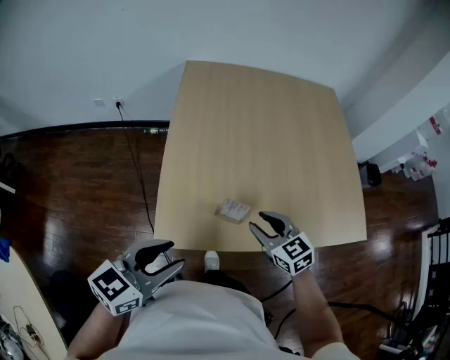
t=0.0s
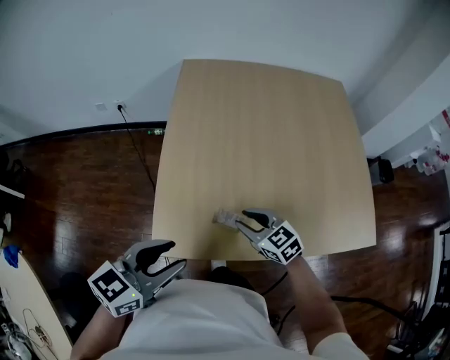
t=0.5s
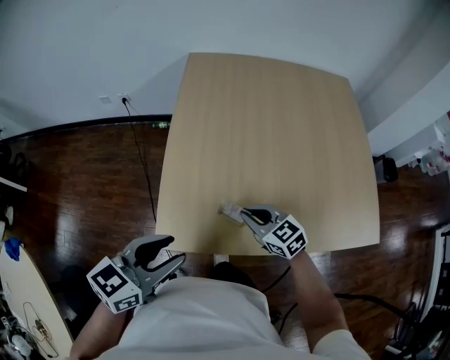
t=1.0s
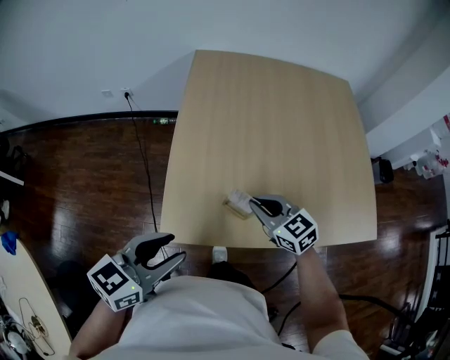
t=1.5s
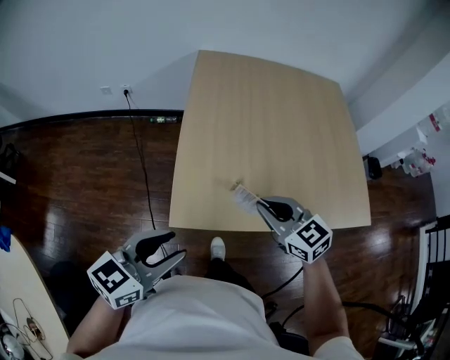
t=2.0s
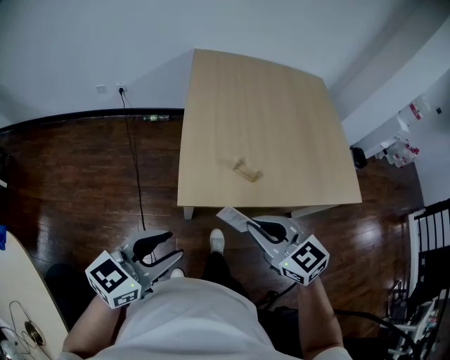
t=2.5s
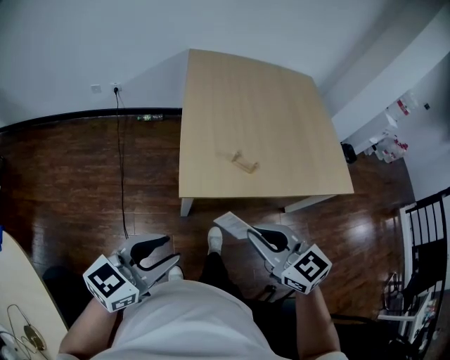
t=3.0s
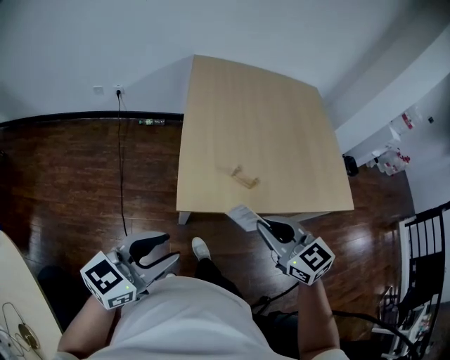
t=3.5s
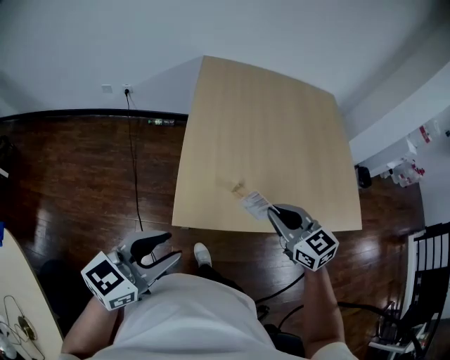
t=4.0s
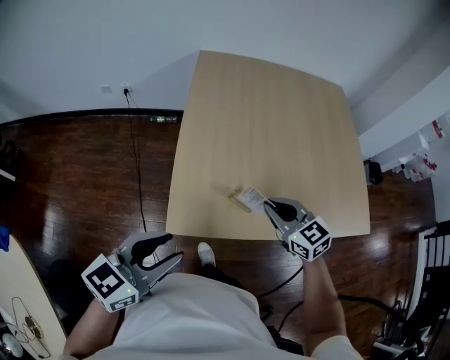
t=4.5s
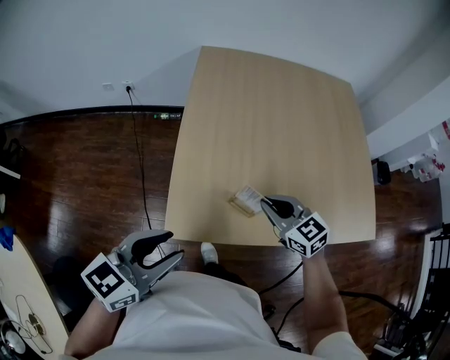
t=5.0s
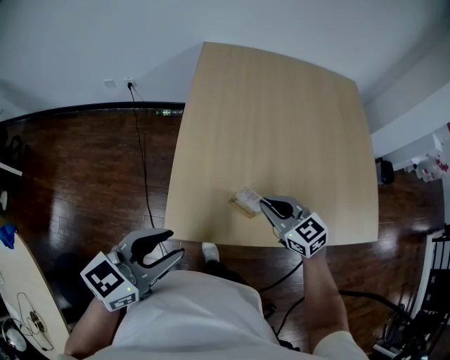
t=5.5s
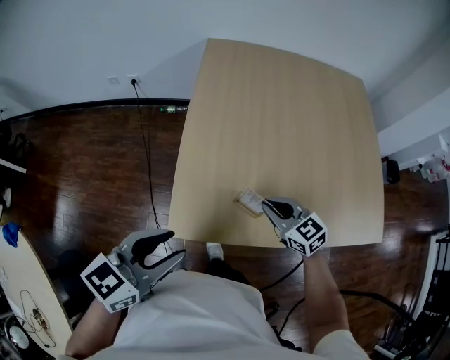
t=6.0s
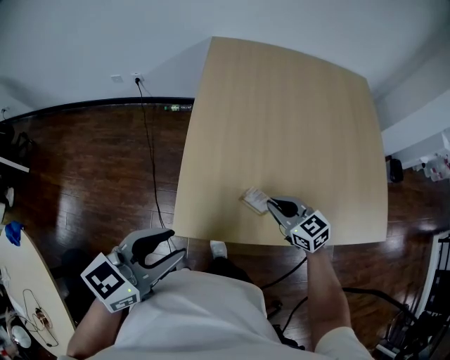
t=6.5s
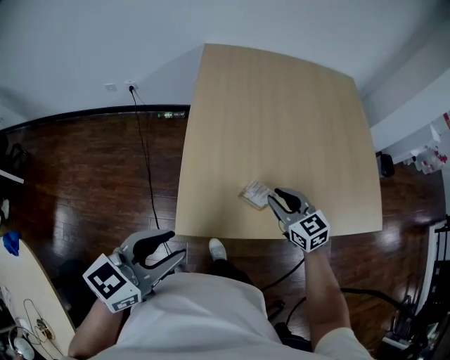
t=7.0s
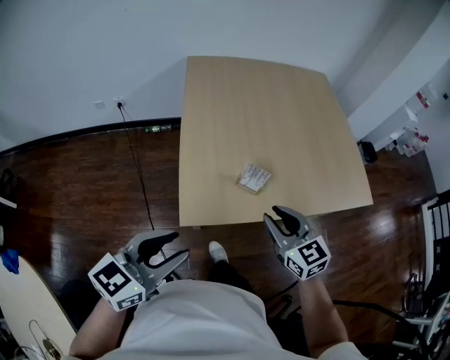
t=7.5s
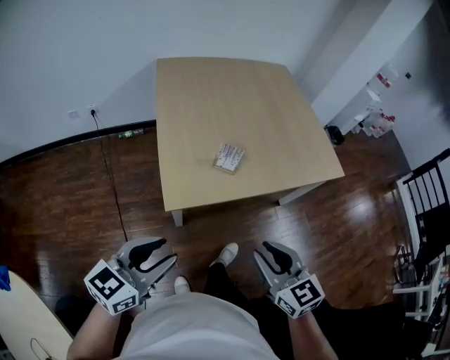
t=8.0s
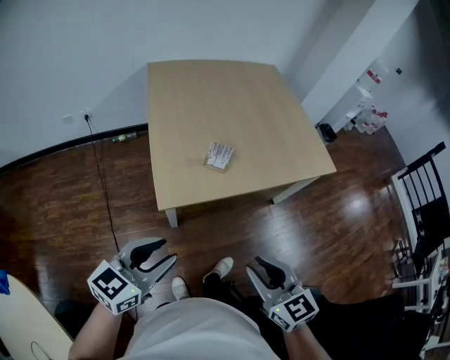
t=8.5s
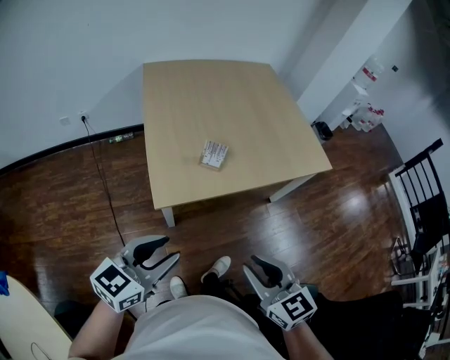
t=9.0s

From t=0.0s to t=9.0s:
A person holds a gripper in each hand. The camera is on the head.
From t=0.0s to t=2.0s: The left gripper moves approximately 5 cm. The right gripper heads upward and to the left, covering roughly 10 cm, and closes up.
From t=2.0s to t=4.5s: The right gripper reaches about 20 cm backward, then returns; the left gripper moves approximately 15 cm backward and comes back.
From t=4.5s to t=7.0s: The right gripper goes approximately 5 cm downward, and opens its fingers.
From t=7.0s to t=9.0s: The right gripper shifts approximately 40 cm backward, and changes its angle by about 20 degrees. Meanwhile the left gripper shifts about 15 cm backward.

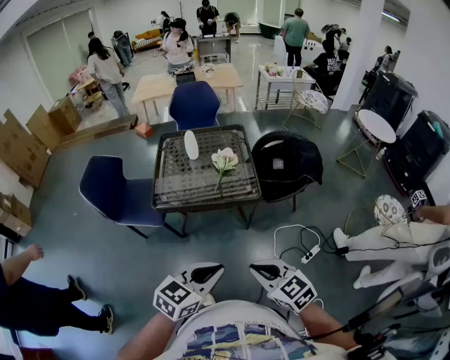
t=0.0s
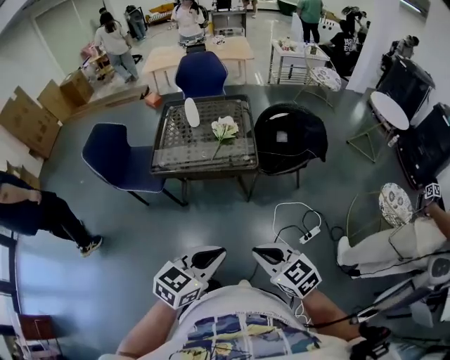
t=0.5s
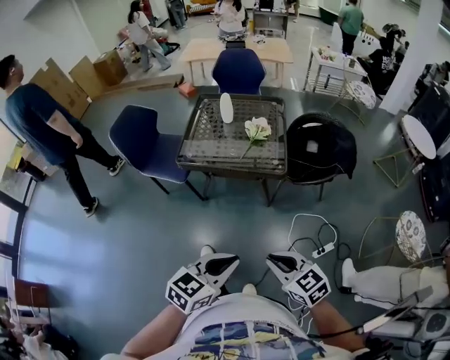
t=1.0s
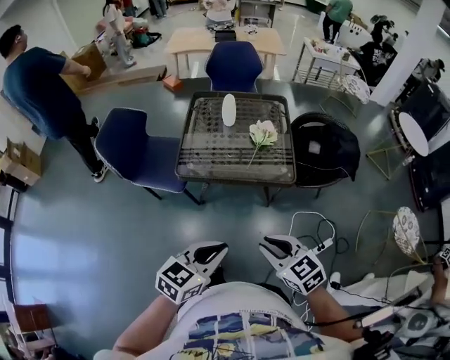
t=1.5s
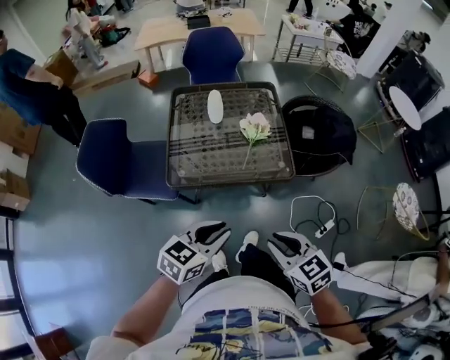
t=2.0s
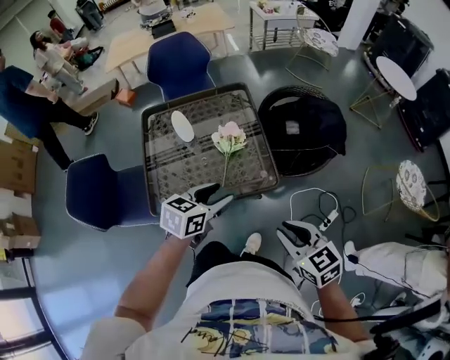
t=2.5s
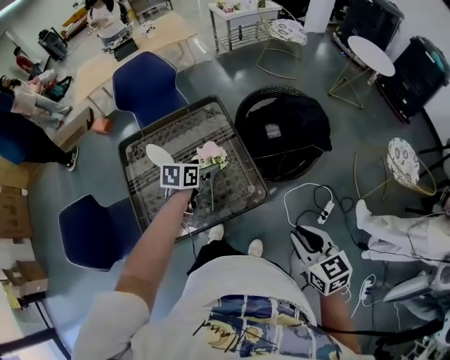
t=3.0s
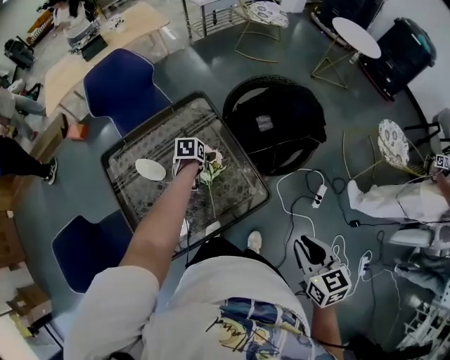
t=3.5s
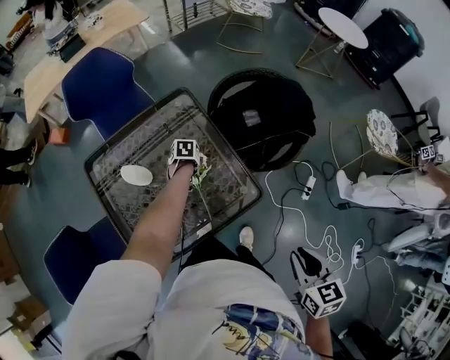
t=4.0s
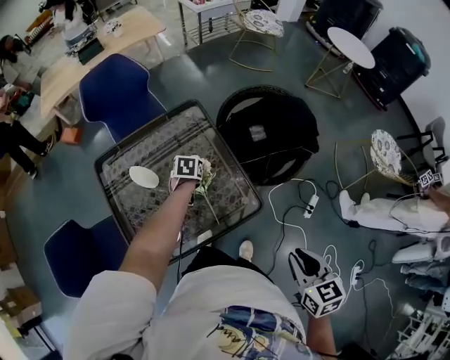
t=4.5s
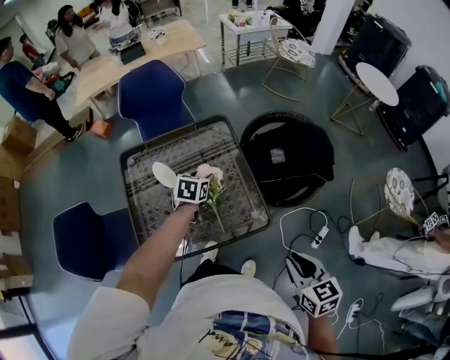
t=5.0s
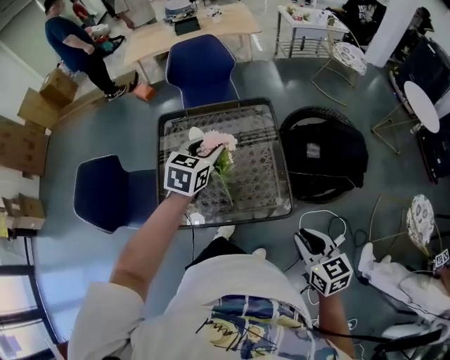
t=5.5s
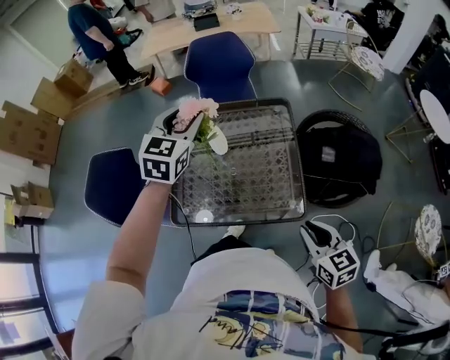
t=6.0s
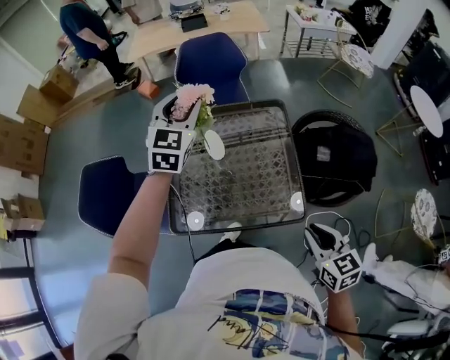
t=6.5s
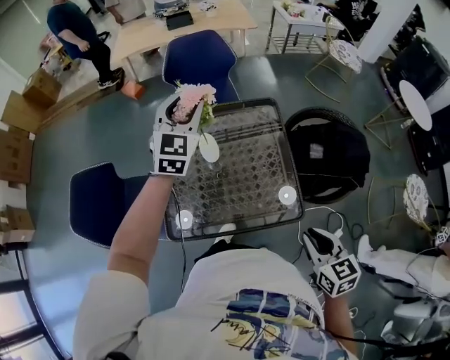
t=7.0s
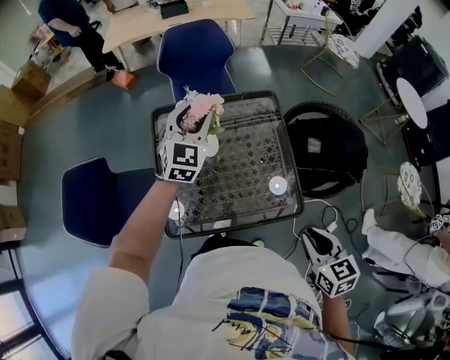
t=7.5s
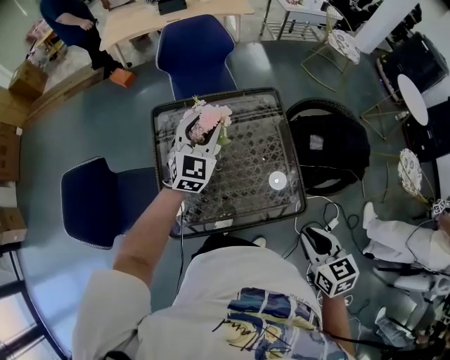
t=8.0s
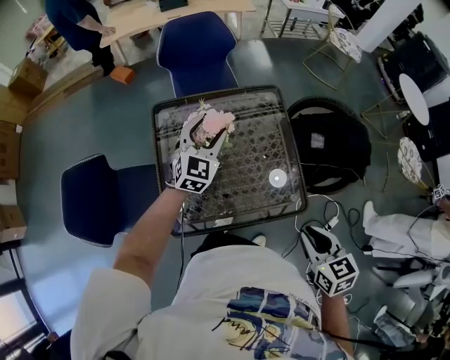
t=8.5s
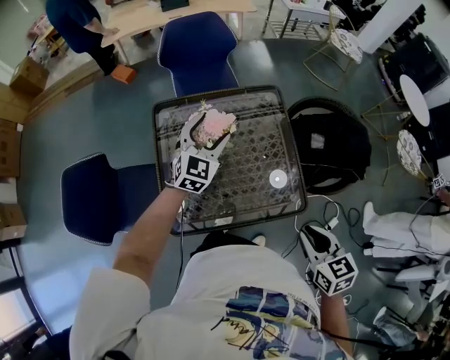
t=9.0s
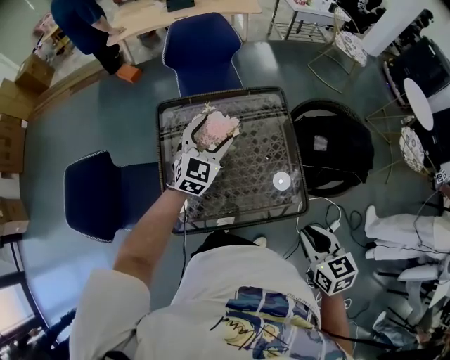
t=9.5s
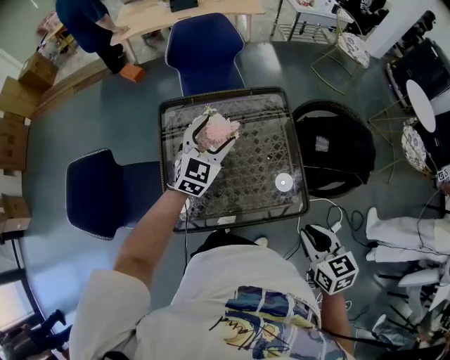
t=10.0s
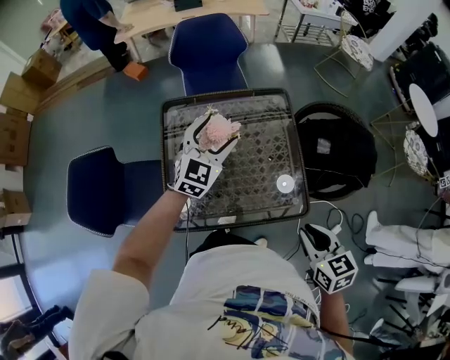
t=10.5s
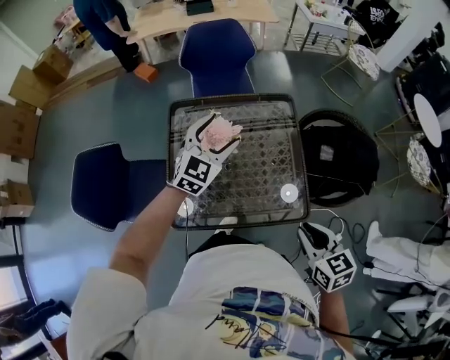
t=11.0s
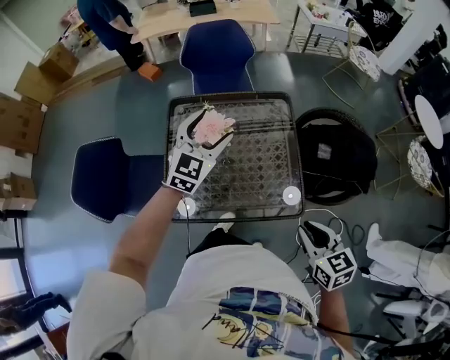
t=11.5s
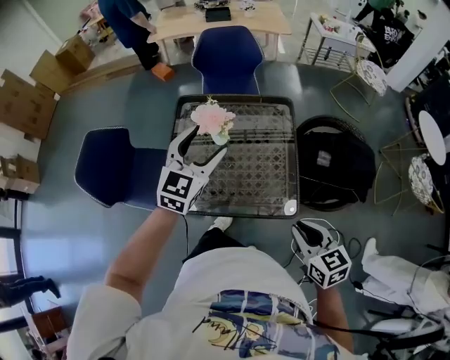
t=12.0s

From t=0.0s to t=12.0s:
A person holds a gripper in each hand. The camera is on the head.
From t=0.0s to t=2.0s: The grippers both shift forward and to the left by approximately 20 cm.
From t=2.0s to t=4.0s: The left gripper ends up roughly 70 cm from where it was, angles its fingers downward, by some 50 degrees, and opens up; the right gripper shifts by roughly 20 cm, and changes its angle by some 60 degrees.
From t=4.0s to t=6.0s: The right gripper ends up some 10 cm from where it was, and turns by roughly 40 degrees. Meanwhile the left gripper heads upward, covering about 50 cm, tips its fingers upward by some 50 degrees, and closes its fingers.
From t=6.0s to t=8.0s: The left gripper goes roughly 15 cm downward and forward. Meanwhile the right gripper heads to the left, covering approximately 5 cm.
From t=8.0s to t=10.0s: The left gripper opens.
From t=10.0s to t=12.0s: The left gripper travels backward and upward by approximately 15 cm; the right gripper moves to the right, about 5 cm.

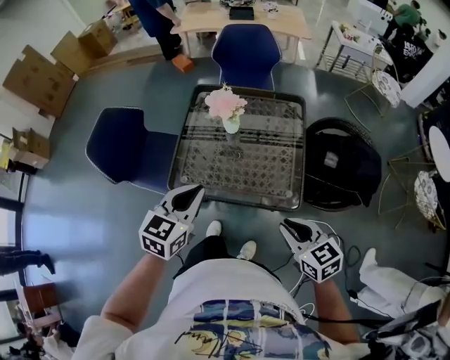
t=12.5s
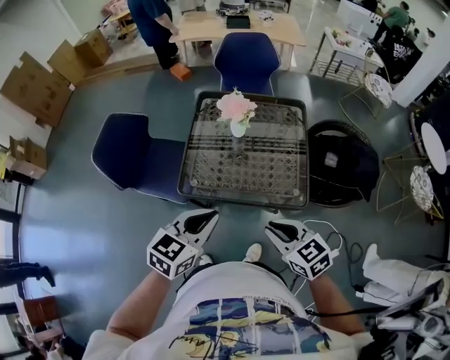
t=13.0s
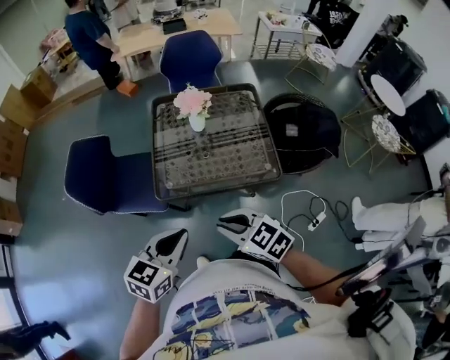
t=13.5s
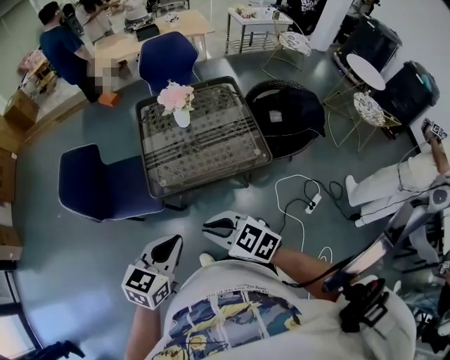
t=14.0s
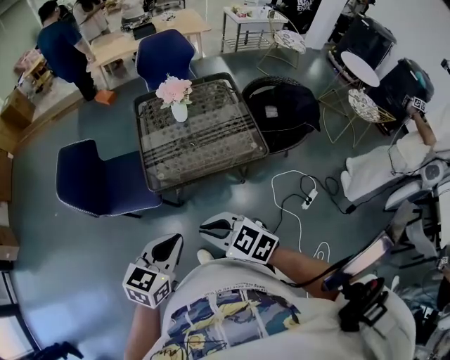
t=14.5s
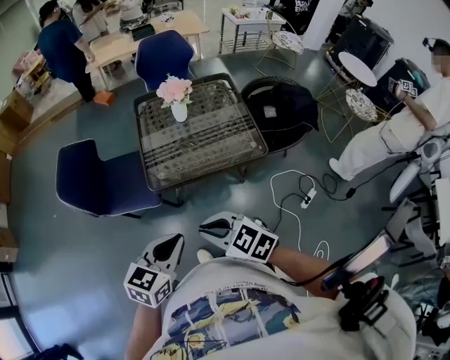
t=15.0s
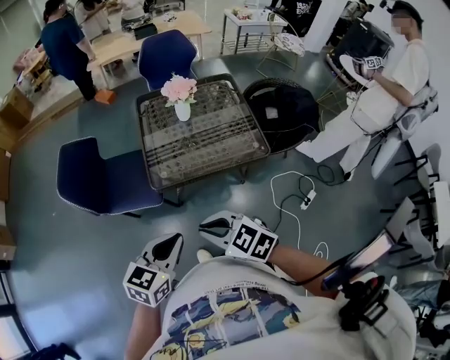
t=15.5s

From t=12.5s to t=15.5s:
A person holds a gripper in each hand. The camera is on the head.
From t=12.5s to t=14.0s: The right gripper heads to the left, covering about 30 cm. Meanwhile the left gripper shifts roughly 25 cm backward and to the left, and swivels some 20 degrees.
From t=14.0s to t=15.5s: The right gripper changes place by approximately 5 cm. The left gripper shifts by about 5 cm.

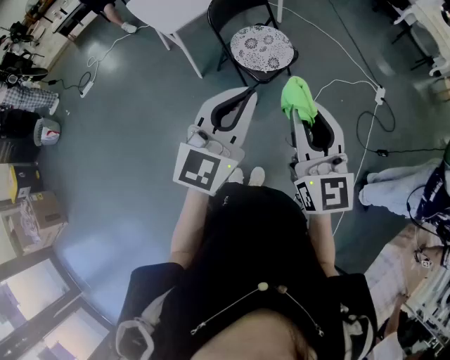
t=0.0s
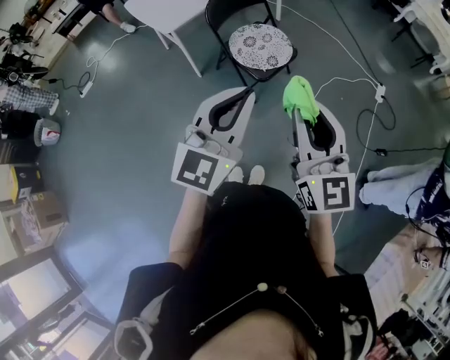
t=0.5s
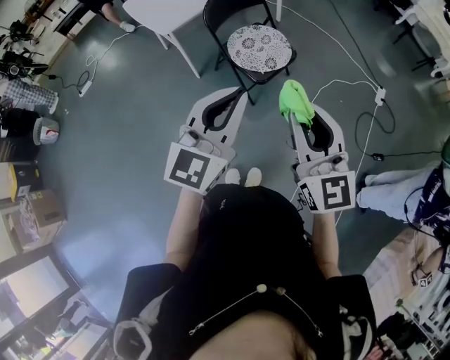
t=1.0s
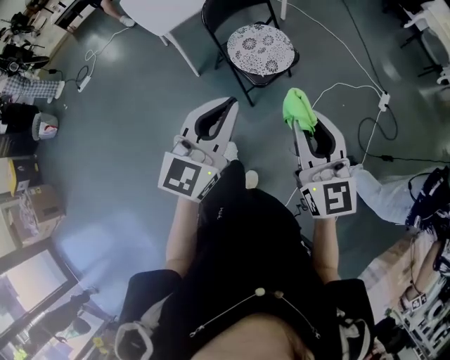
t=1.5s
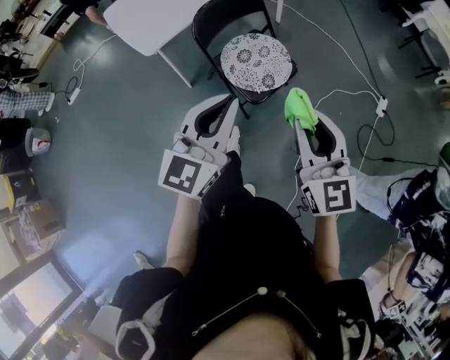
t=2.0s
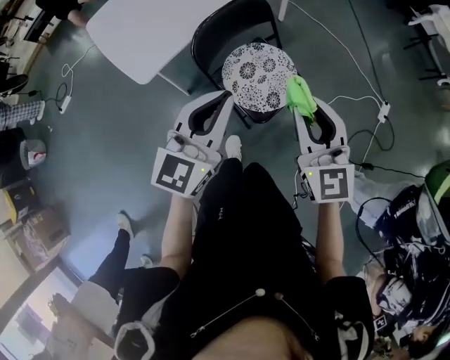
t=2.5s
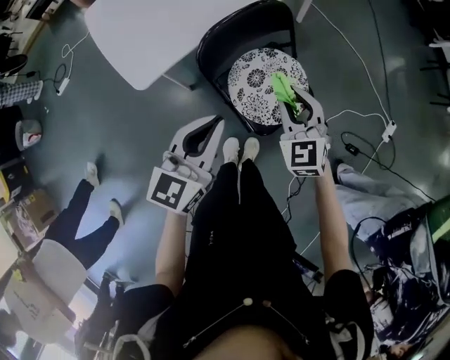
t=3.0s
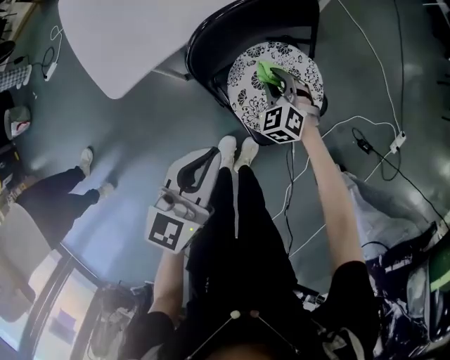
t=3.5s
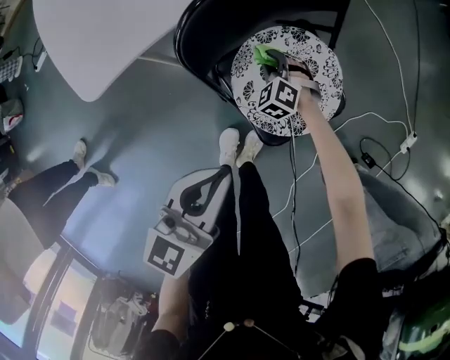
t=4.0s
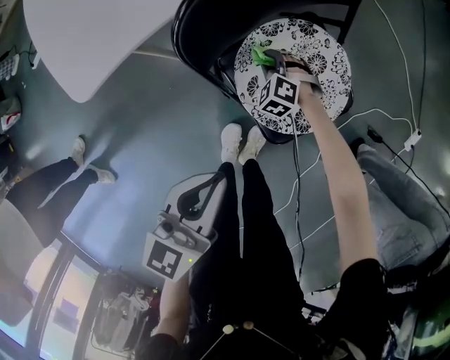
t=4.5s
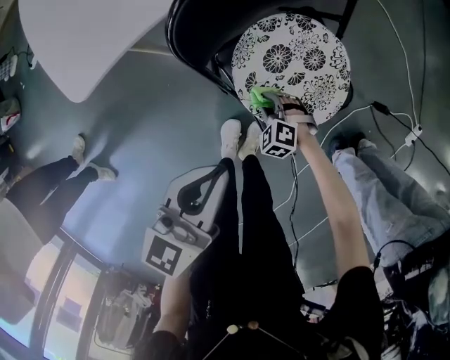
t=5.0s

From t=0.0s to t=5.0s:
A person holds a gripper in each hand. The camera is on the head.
From t=0.0s to t=2.5s: The two grippers travel together, forward, some 40 cm.
From t=2.5s to t=5.0s: The right gripper shifts roughly 60 cm downward, and angles its fingers downward, by some 50 degrees. Meanwhile the left gripper moves downward, some 30 cm, and swivels approximately 20 degrees.
